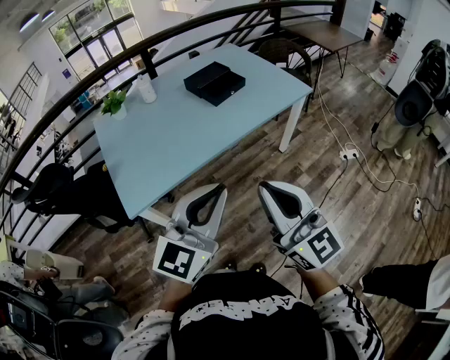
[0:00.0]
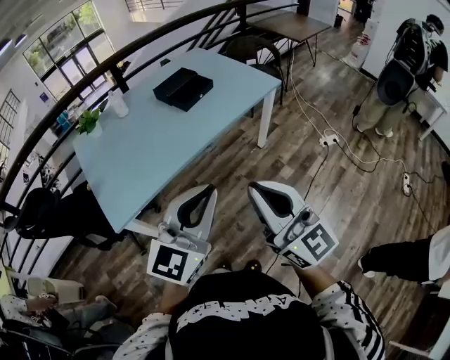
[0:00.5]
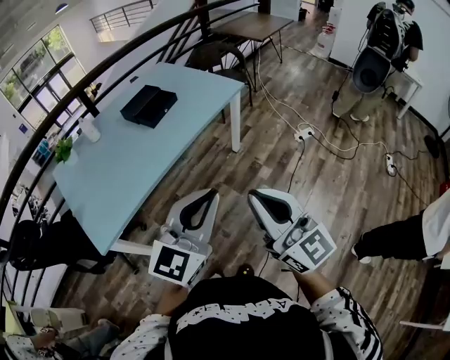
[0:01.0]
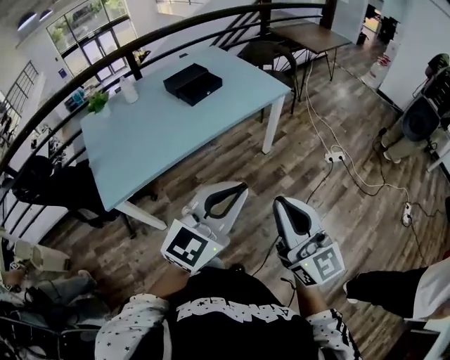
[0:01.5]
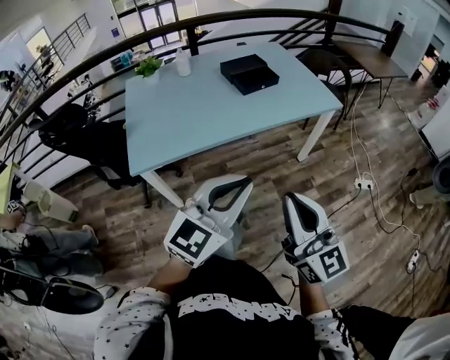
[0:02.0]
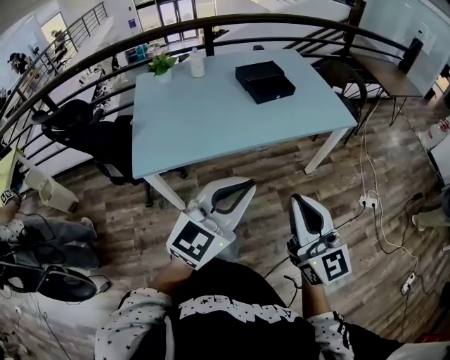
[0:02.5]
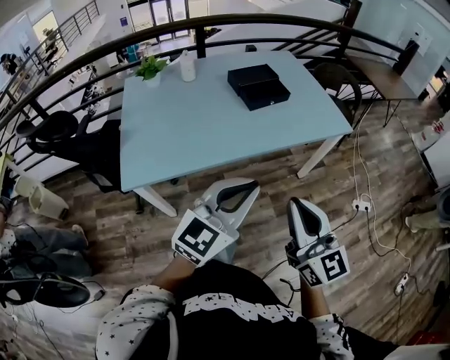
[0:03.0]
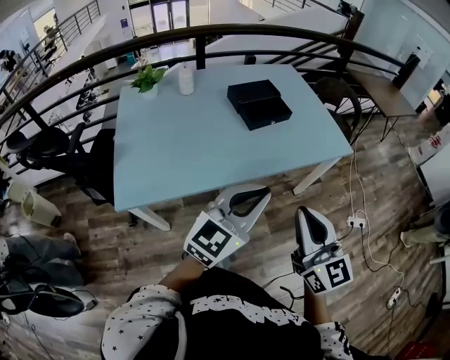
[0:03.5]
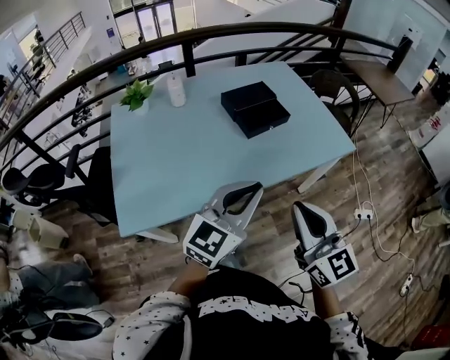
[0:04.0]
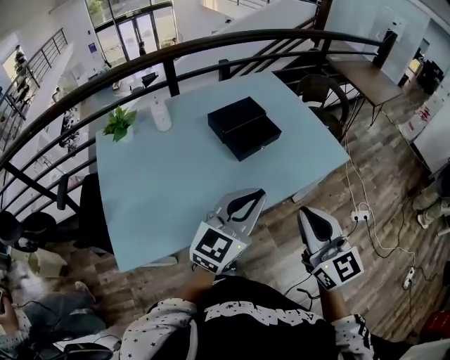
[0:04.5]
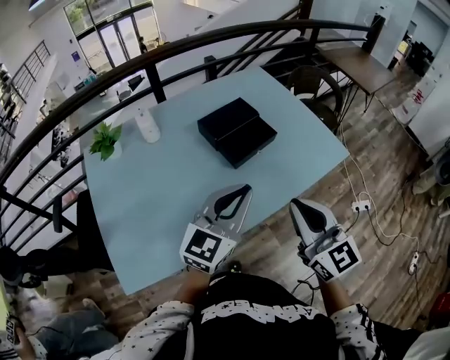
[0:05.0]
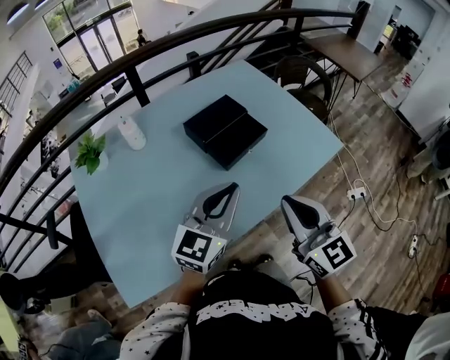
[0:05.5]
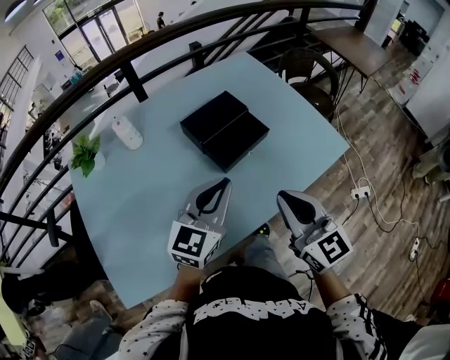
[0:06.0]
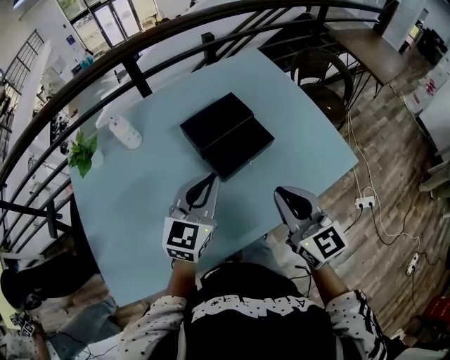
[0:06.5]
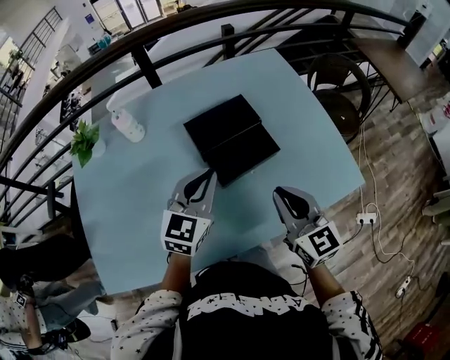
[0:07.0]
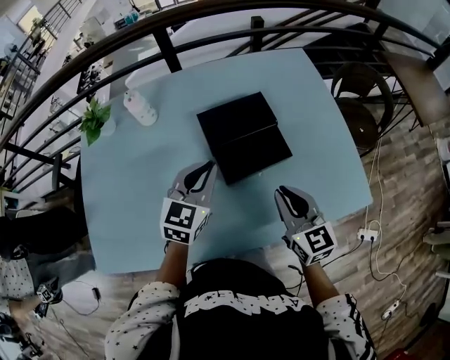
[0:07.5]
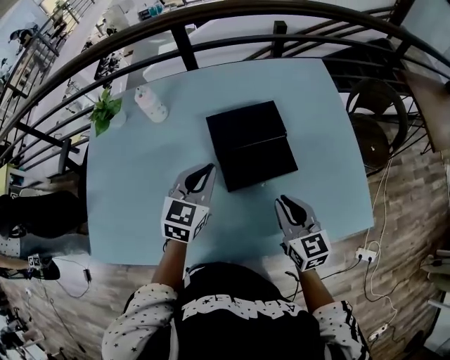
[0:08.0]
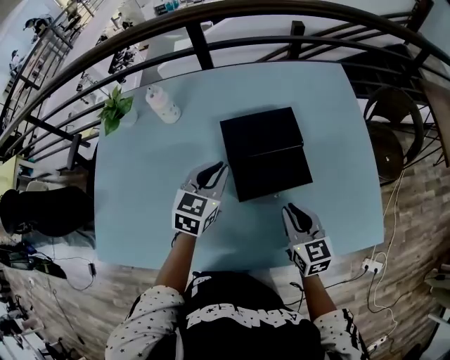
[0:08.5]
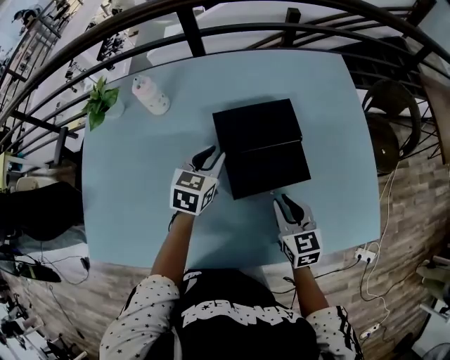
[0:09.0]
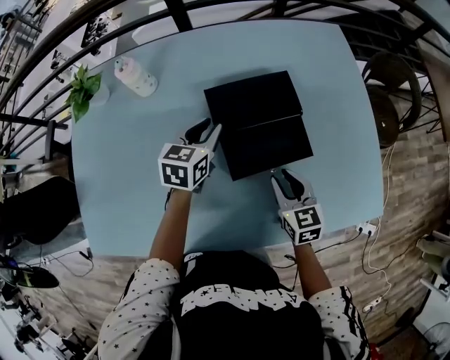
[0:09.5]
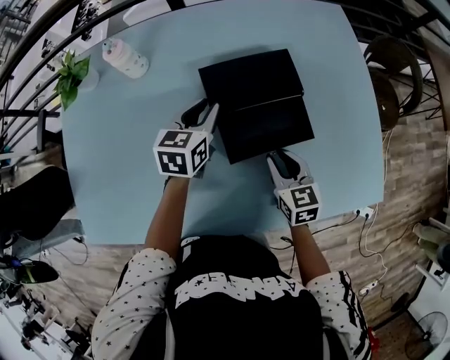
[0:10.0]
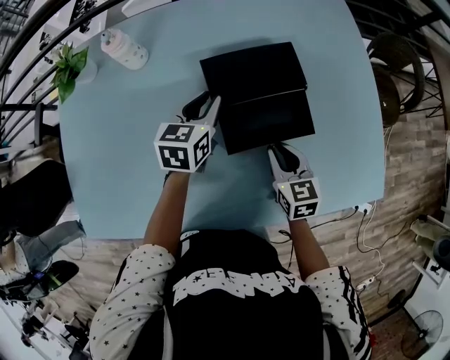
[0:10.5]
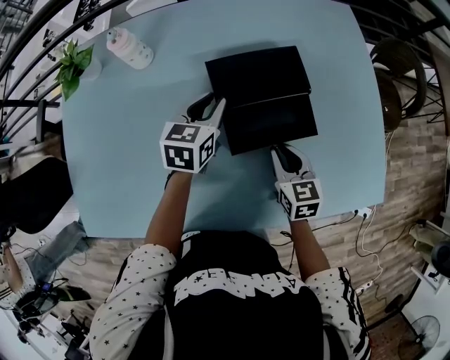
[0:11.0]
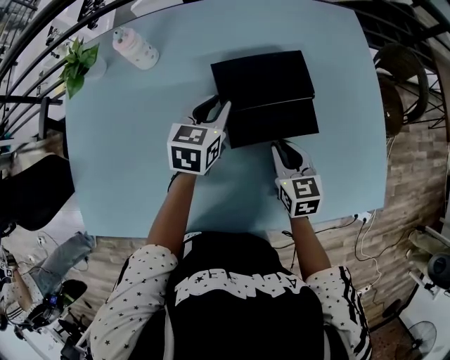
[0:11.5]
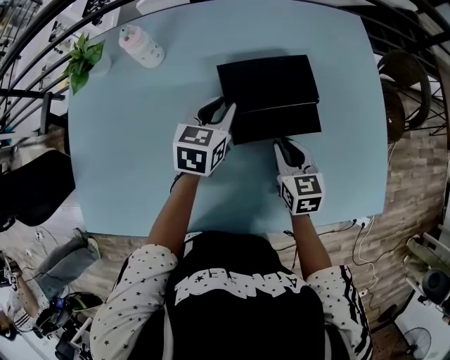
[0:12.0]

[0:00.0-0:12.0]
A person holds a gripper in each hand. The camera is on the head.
0:00.0 to 0:02.0: Both grippers travel together to the right, about 10 cm.
0:02.0 to 0:04.0: Both grippers travel together forward, about 30 cm.
0:04.0 to 0:06.0: Both grippers move forward, approximately 25 cm.
0:06.0 to 0:08.0: The left gripper moves approximately 20 cm, and swivels roughly 30 degrees. Meanwhile the right gripper moves approximately 25 cm, and turns by some 20 degrees.
0:08.0 to 0:10.0: The left gripper travels forward and downward by roughly 15 cm, and rotates about 20 degrees. The right gripper moves downward and forward, some 15 cm.
0:10.0 to 0:12.0: The grippers stay close to where they were, moving slightly.

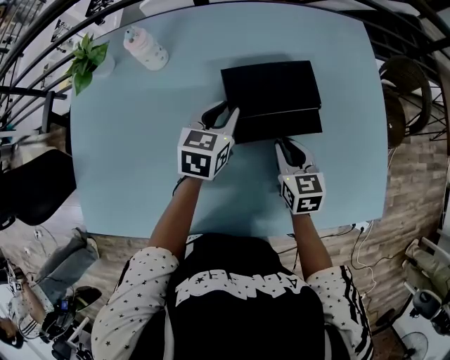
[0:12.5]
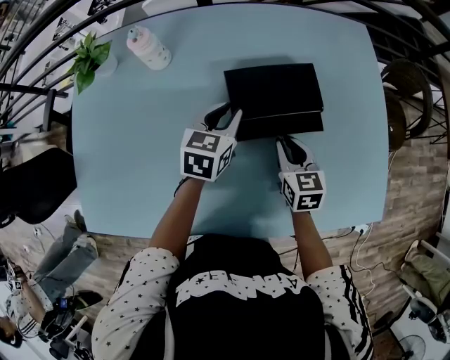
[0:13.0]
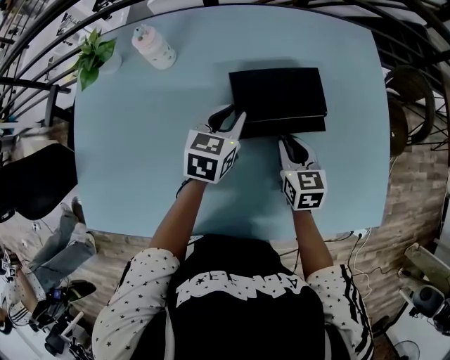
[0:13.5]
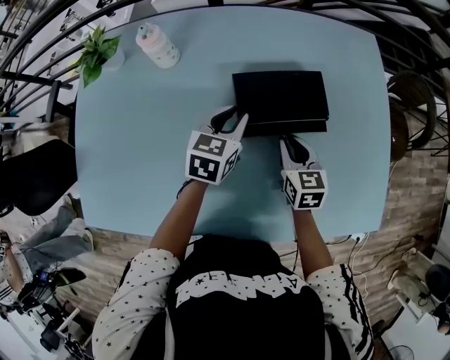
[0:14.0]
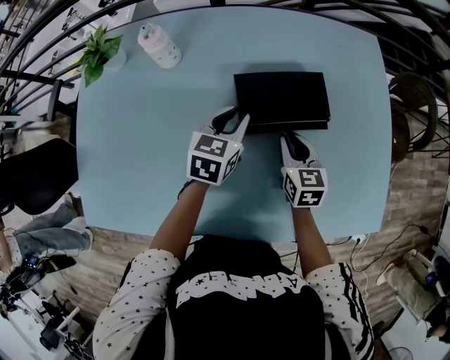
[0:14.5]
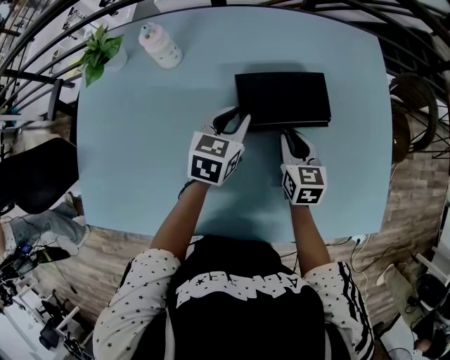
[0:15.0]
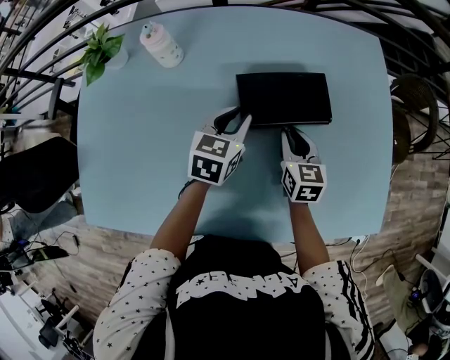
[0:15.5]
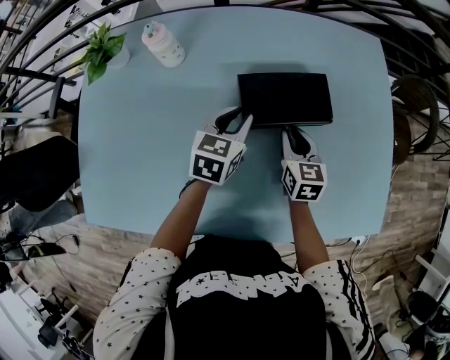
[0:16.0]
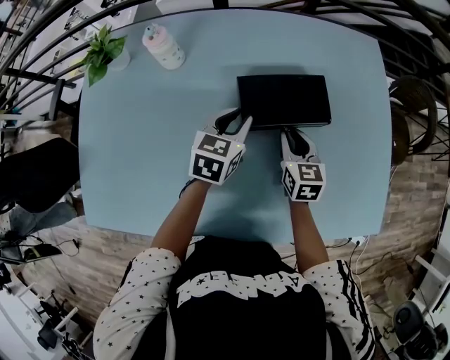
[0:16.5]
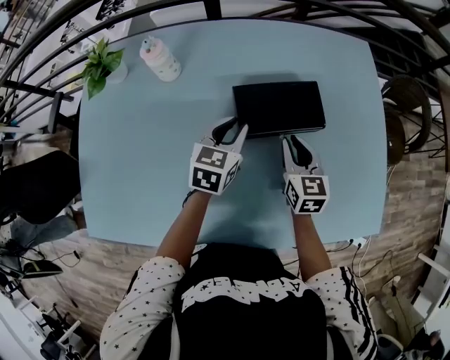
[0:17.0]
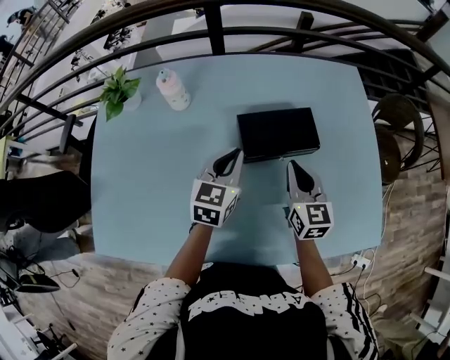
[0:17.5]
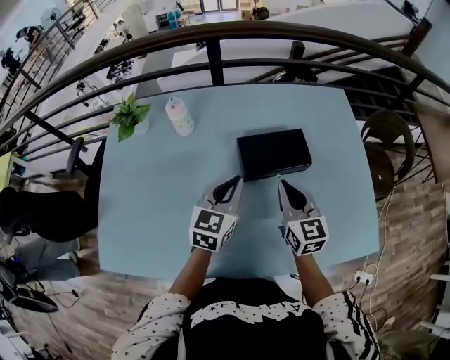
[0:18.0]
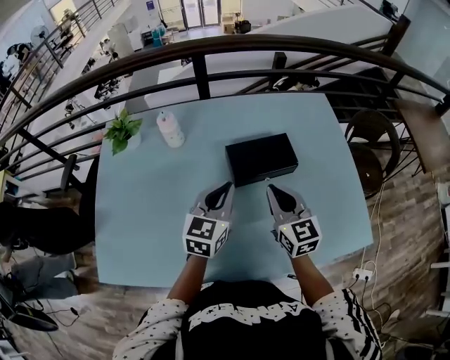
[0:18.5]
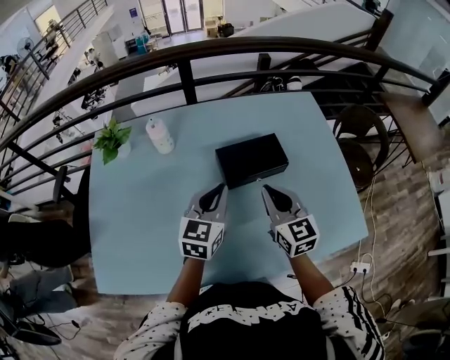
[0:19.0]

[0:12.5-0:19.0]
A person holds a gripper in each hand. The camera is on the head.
0:12.5 to 0:14.5: The grippers stay close to where they were, moving slightly.
0:14.5 to 0:17.0: The grippers stay close to where they were, moving slightly.
0:17.0 to 0:19.0: The two grippers go some 20 cm upward and backward.

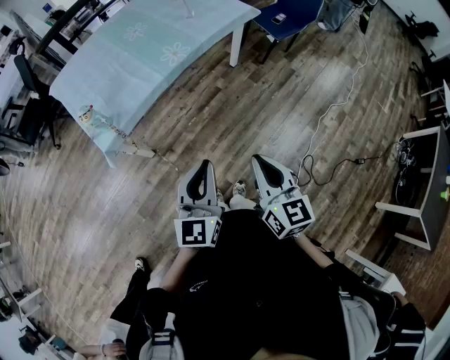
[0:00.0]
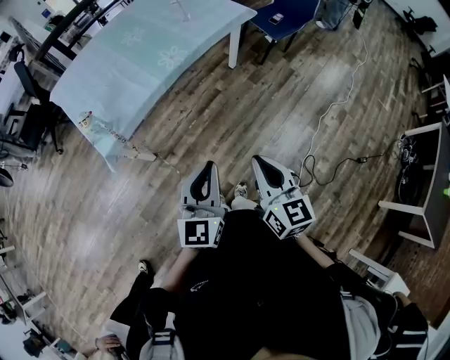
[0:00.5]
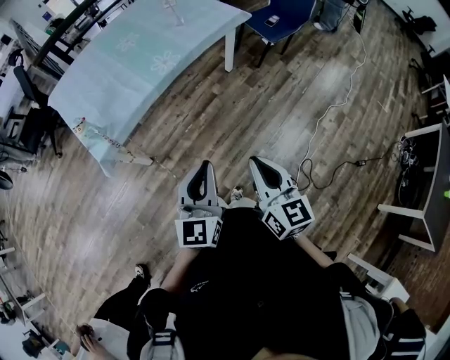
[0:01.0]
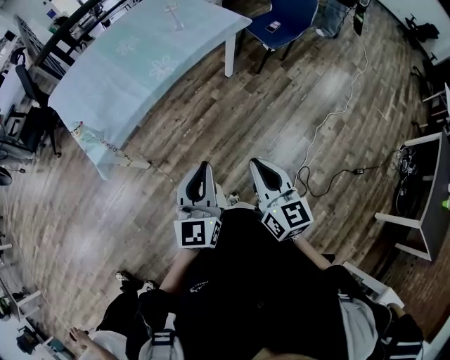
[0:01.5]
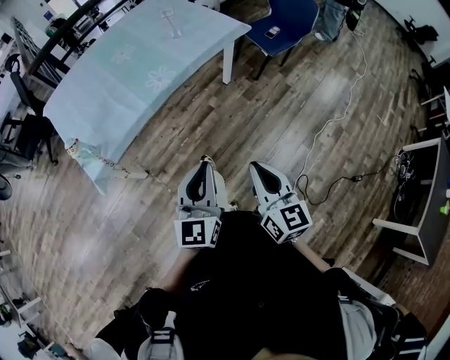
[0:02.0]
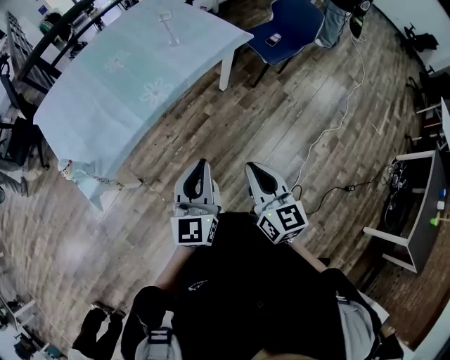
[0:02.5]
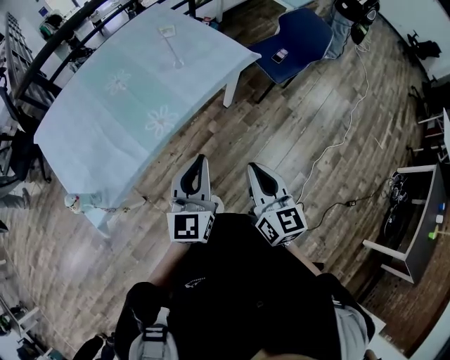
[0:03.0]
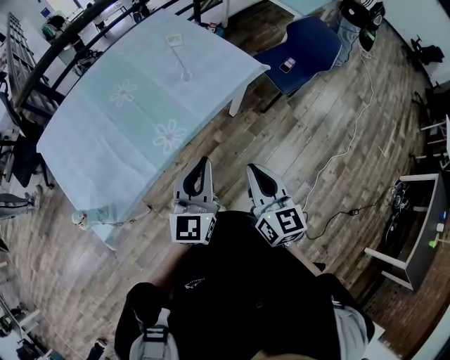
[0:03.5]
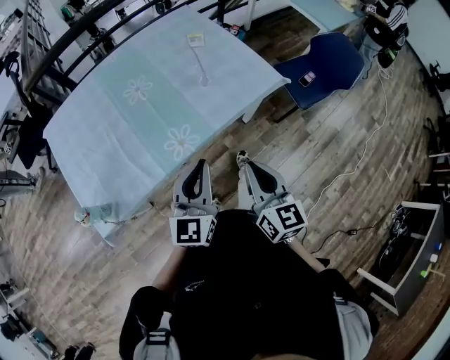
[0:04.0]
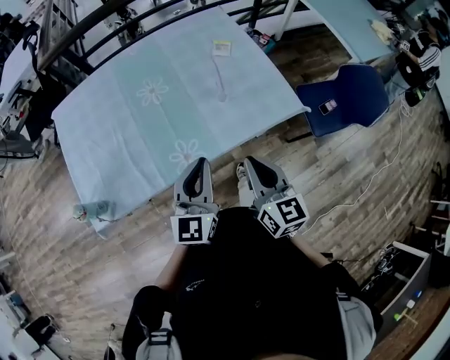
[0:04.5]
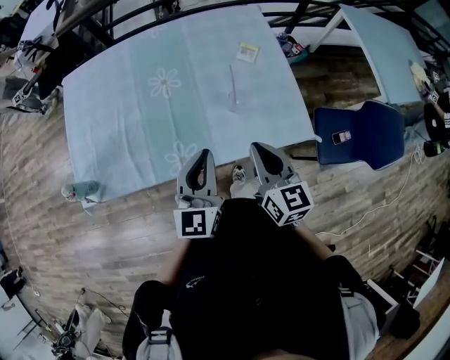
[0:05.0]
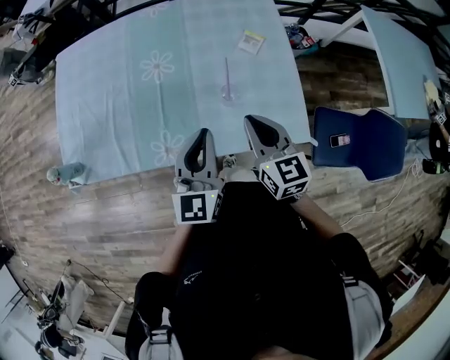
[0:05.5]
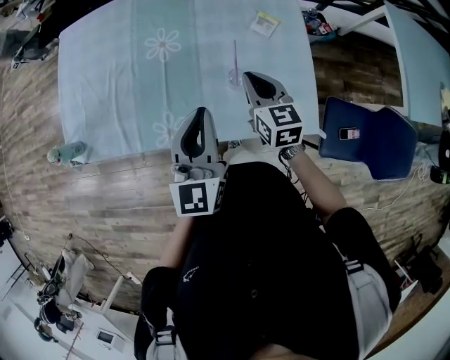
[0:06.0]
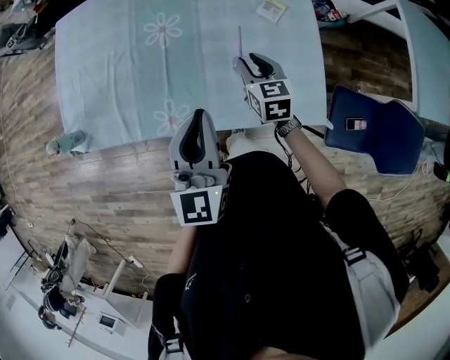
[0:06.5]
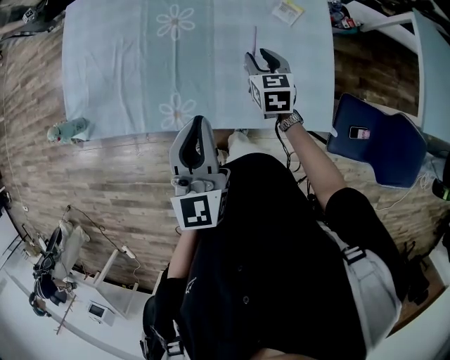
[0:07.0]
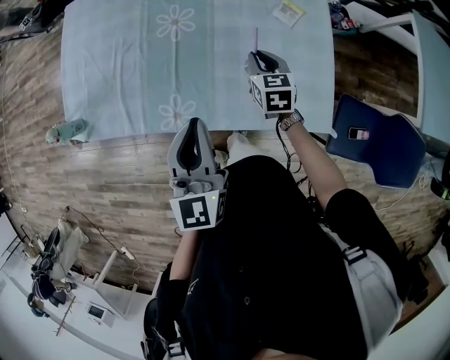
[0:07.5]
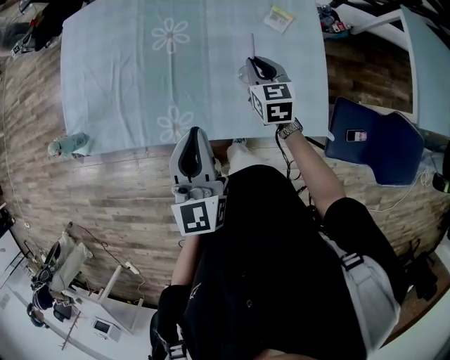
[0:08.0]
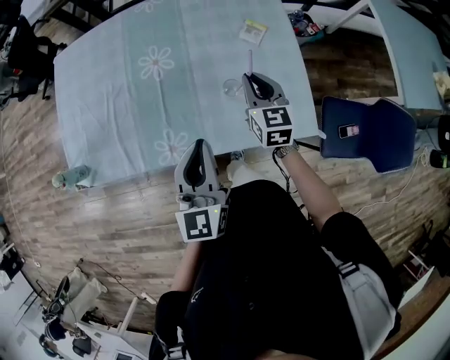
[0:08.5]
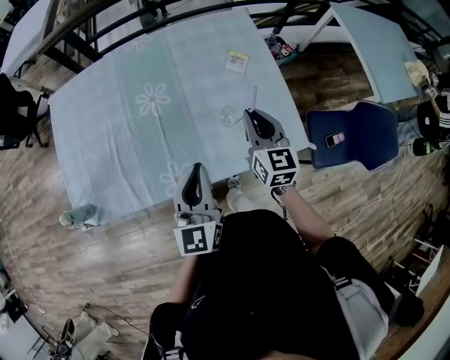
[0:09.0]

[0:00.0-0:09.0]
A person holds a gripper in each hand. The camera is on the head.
0:00.0 to 0:02.0: The two grippers go approximately 15 cm forward and to the right.
0:02.0 to 0:04.5: The pair of grippers is taken forward, approximately 50 cm. The right gripper turns by approximately 20 degrees.
0:04.5 to 0:07.0: The right gripper ends up roughly 40 cm from where it was, swivels about 40 degrees, and opens. The left gripper moves some 15 cm, and turns by roughly 40 degrees.
0:07.0 to 0:09.0: The left gripper swivels some 20 degrees. The right gripper goes some 15 cm upward and backward, swivels some 30 degrees, and closes up.
